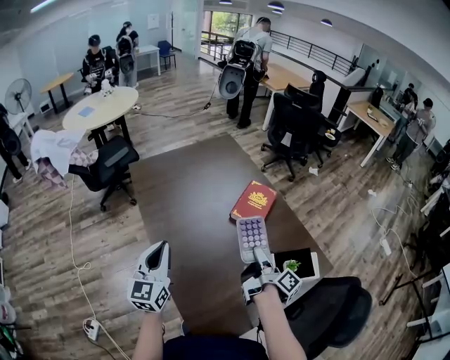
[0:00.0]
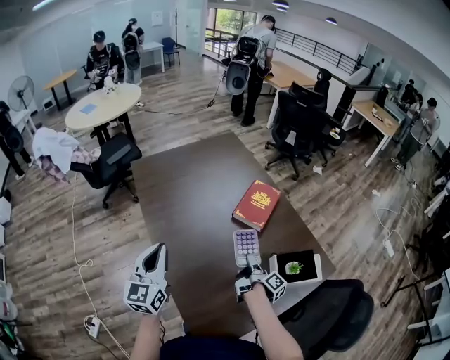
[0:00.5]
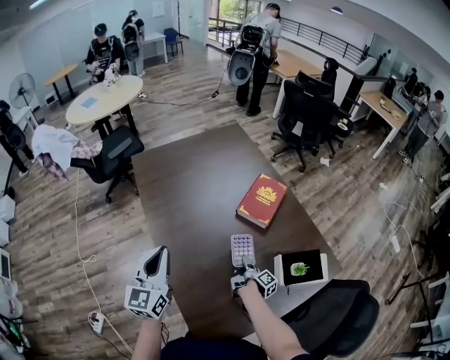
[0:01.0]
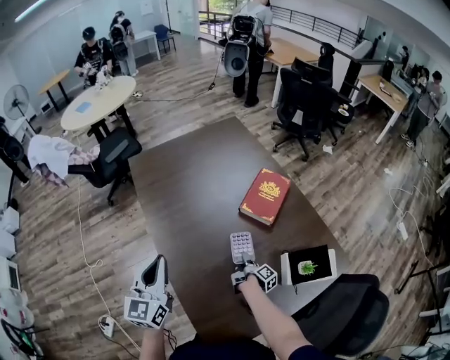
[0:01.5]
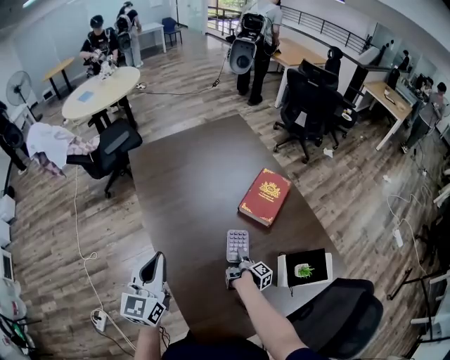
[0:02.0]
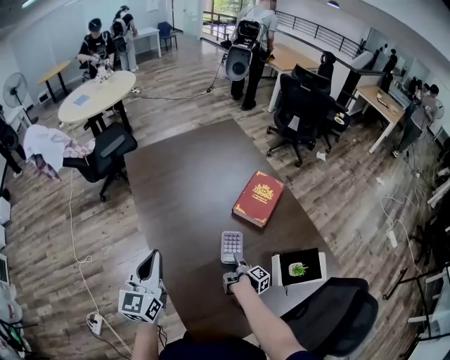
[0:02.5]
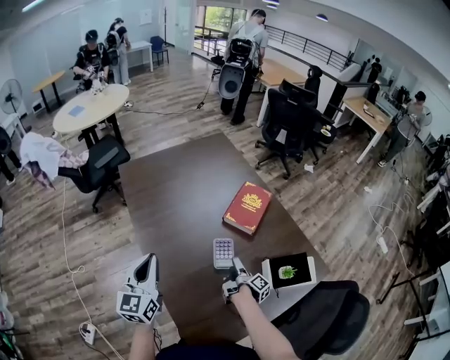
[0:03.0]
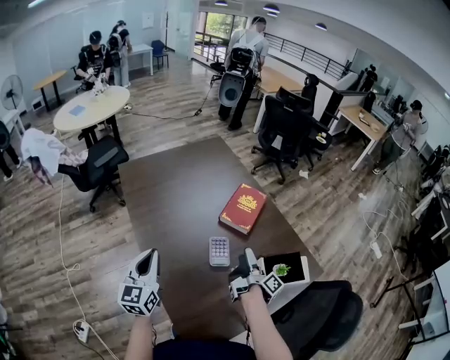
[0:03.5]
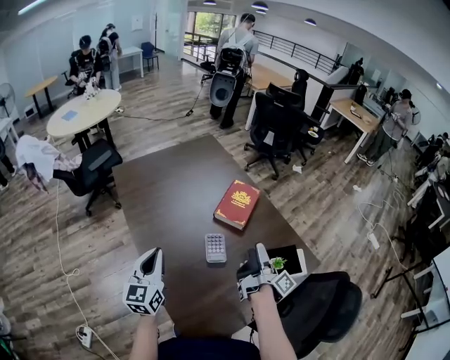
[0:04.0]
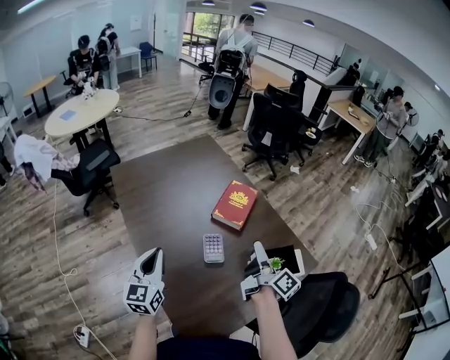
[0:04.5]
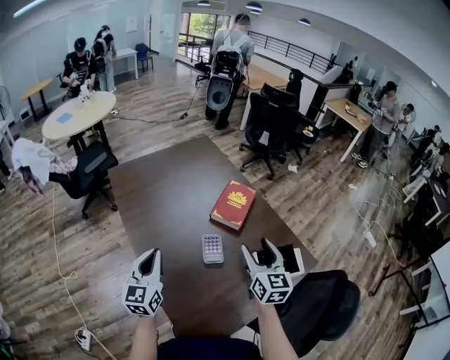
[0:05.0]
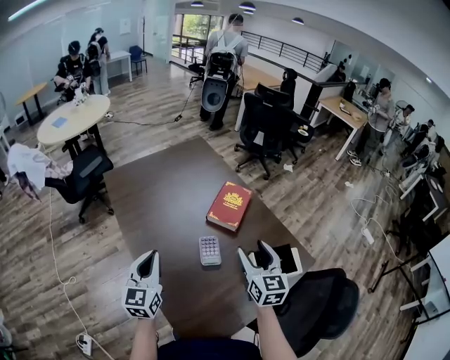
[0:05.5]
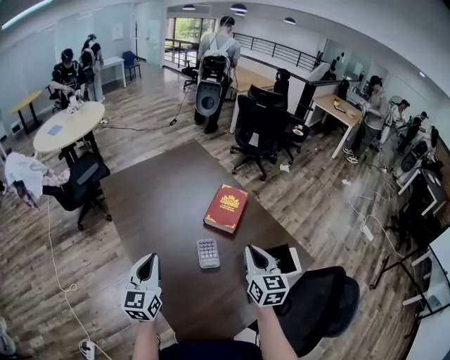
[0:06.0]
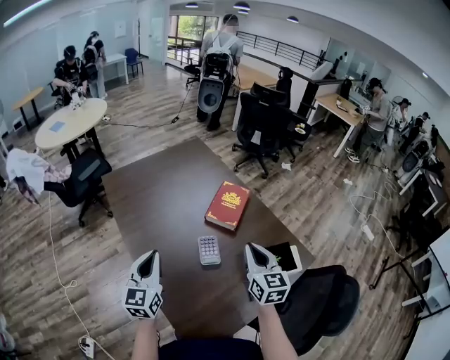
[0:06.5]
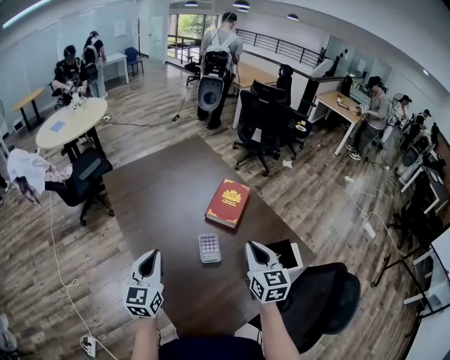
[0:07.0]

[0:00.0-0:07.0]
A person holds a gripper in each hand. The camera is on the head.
0:00.0 to 0:02.0: The right gripper heads downward, covering approximately 30 cm, rotates some 30 degrees, and opens its fingers.
0:02.0 to 0:03.5: The right gripper travels upward by roughly 25 cm, and rotates approximately 30 degrees.
0:03.5 to 0:05.0: The right gripper moves upward, approximately 15 cm, and twists about 90 degrees counterclockwise, seen from behind.
0:05.0 to 0:07.0: The right gripper closes its fingers.

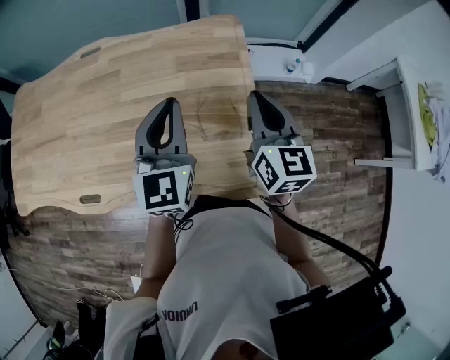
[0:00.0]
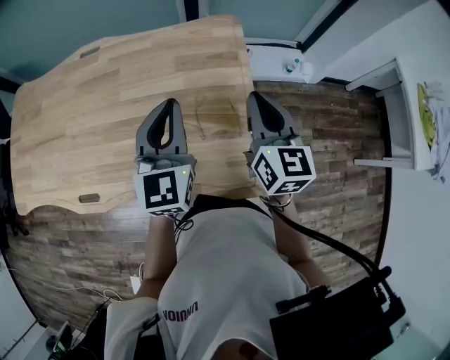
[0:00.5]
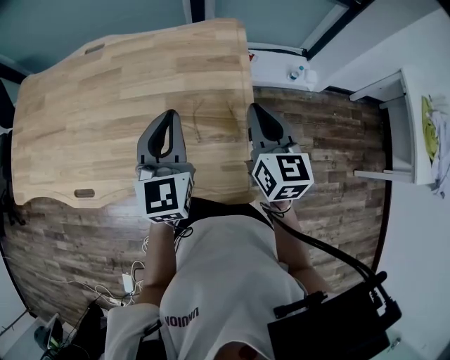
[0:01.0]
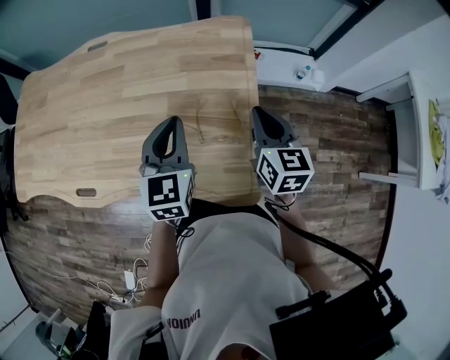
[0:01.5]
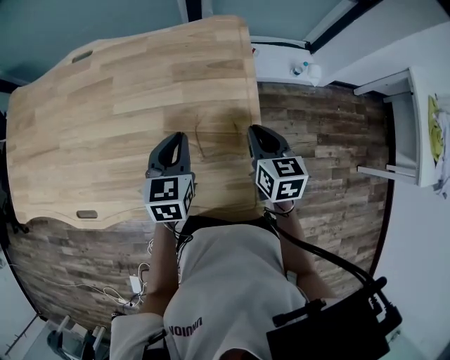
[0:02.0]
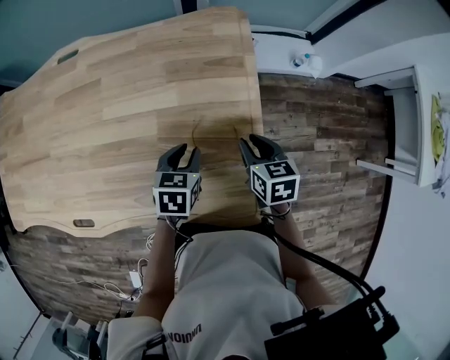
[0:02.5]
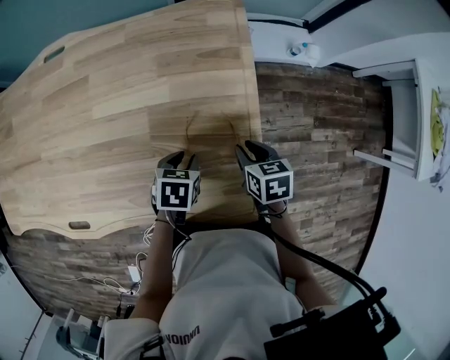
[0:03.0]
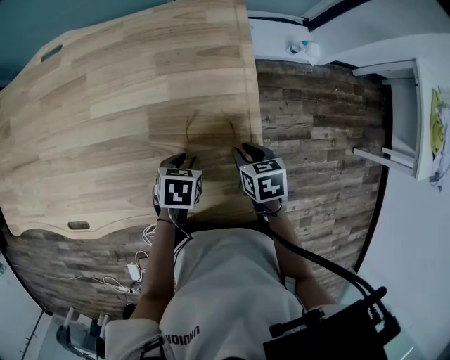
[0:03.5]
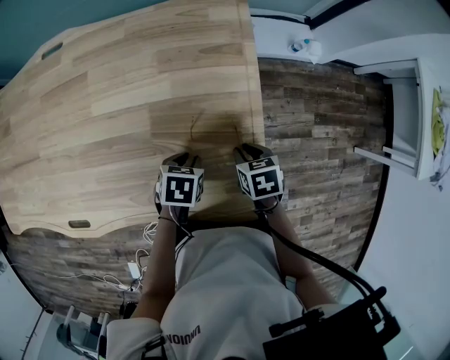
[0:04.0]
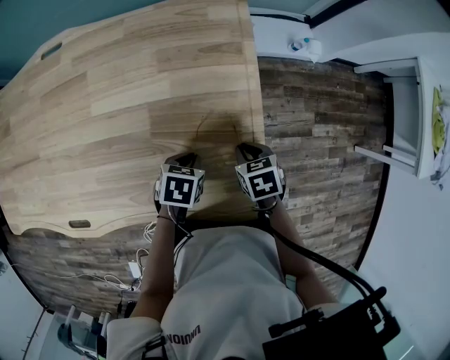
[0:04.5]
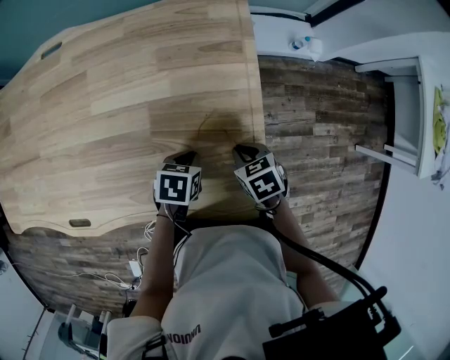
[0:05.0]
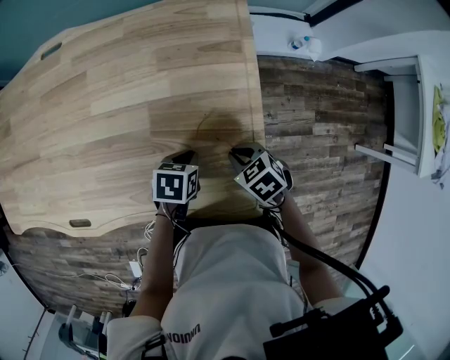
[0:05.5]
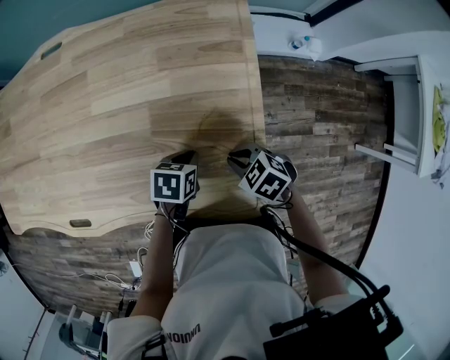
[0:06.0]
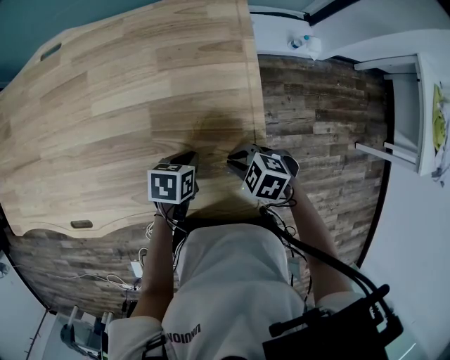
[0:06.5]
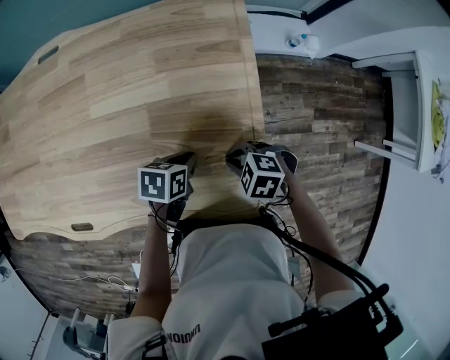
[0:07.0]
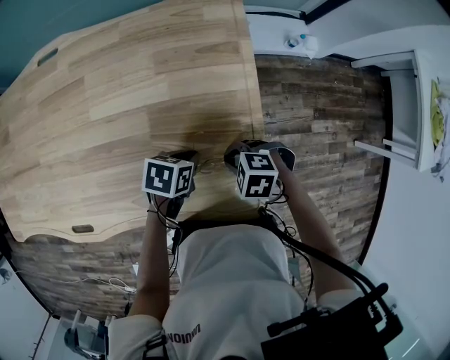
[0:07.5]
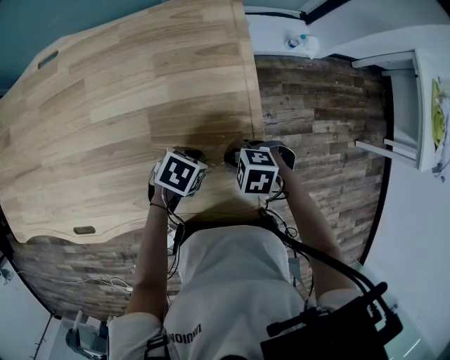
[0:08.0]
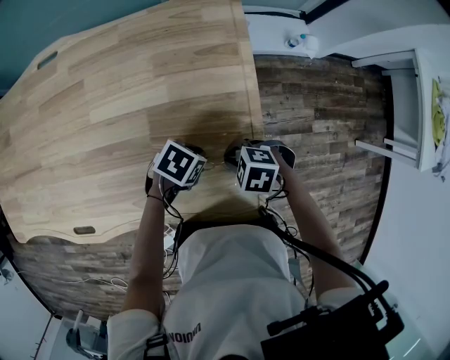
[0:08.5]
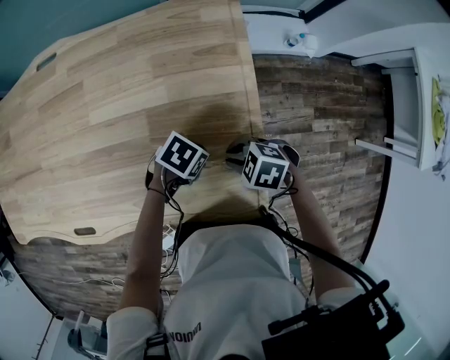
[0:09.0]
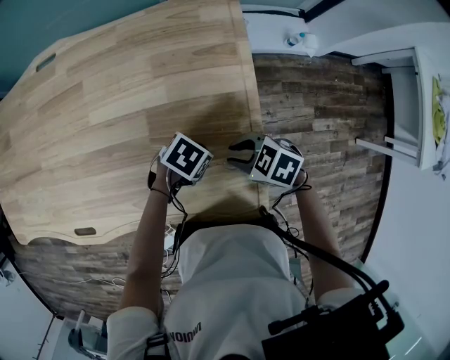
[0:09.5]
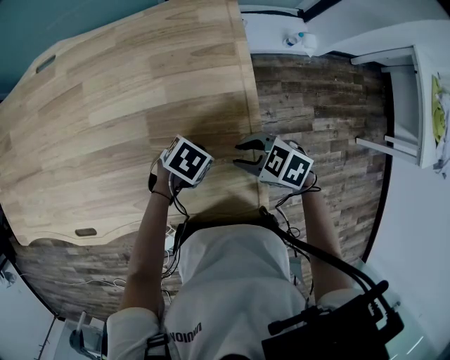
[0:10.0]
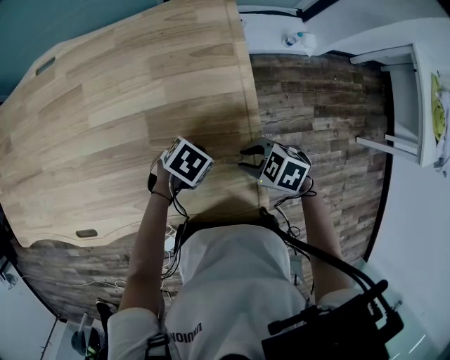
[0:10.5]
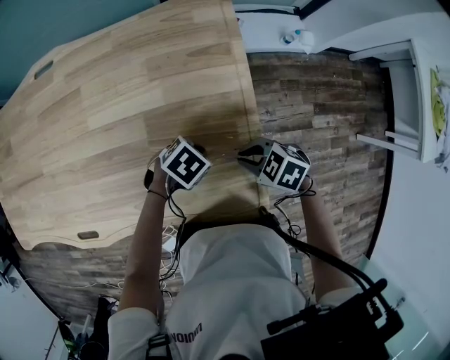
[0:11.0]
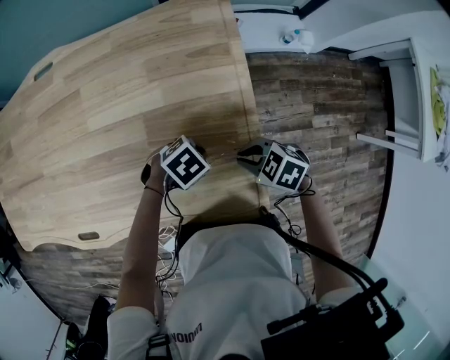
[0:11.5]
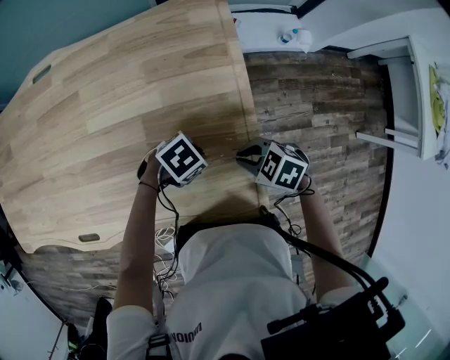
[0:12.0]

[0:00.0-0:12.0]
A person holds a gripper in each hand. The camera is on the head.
0:00.0 to 0:02.0: The grippers both shift downward by roughly 15 cm. The right gripper swivels about 30 degrees. The left gripper swivels some 30 degrees.
0:02.0 to 0:04.0: The two grippers go roughly 15 cm downward and backward. The left gripper points its fingers roughly 40 degrees further downward, and opens its fingers, while the right gripper tilts its fingers some 30 degrees downward.
0:04.0 to 0:06.0: The right gripper changes place by about 5 cm, and rotates around the line of its fingers by about 40 degrees, counterclockwise from behind.
0:06.0 to 0:08.0: The left gripper turns by about 20 degrees. Meanwhile the right gripper turns by some 20 degrees.
0:08.0 to 0:10.0: The right gripper changes place by roughly 5 cm, turns by roughly 20 degrees, and opens.
0:10.0 to 0:12.0: The right gripper closes up.

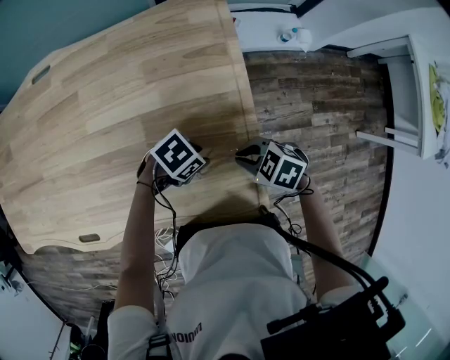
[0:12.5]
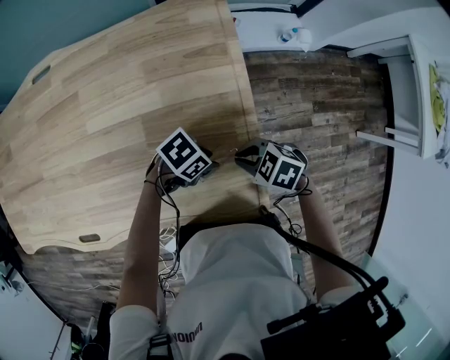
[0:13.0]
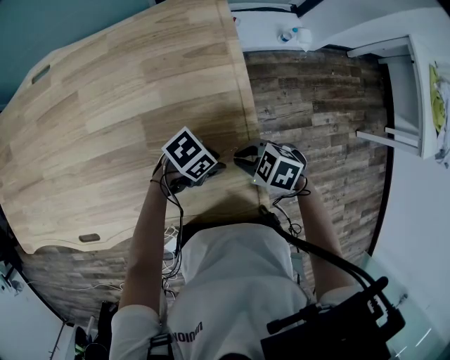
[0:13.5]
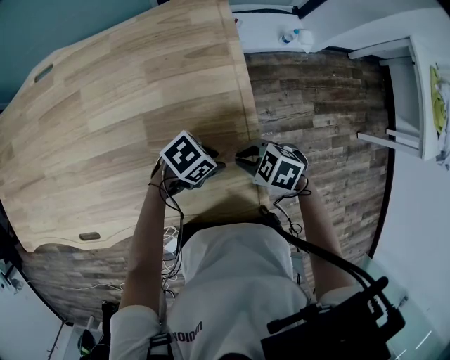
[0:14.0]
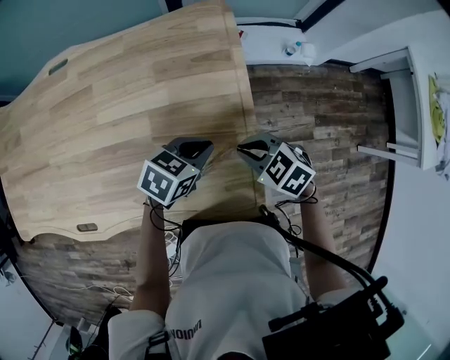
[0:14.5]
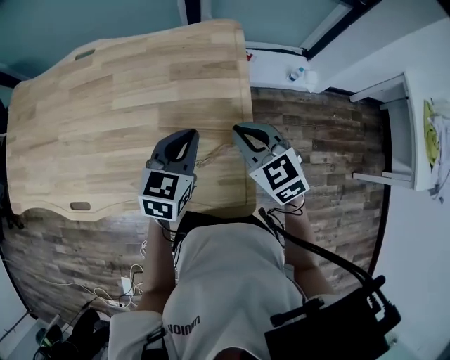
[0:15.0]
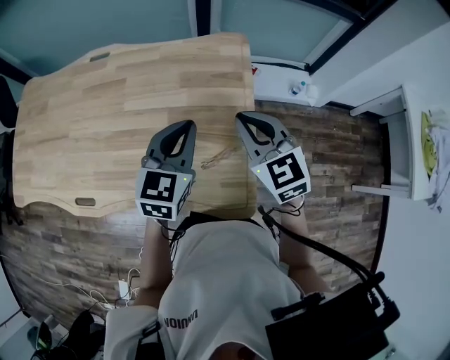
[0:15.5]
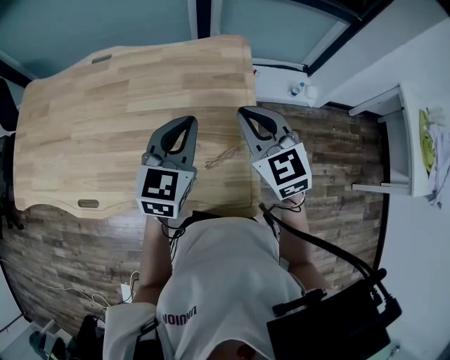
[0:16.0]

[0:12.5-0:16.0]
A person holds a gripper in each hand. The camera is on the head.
0:12.5 to 0:14.5: The right gripper moves about 5 cm, while the left gripper travels upward by about 10 cm, turns by about 40 degrees, and closes.
0:14.5 to 0:16.0: The grippers both shift upward by some 20 cm. The right gripper tilts its fingers approximately 30 degrees upward. The left gripper swivels approximately 50 degrees.

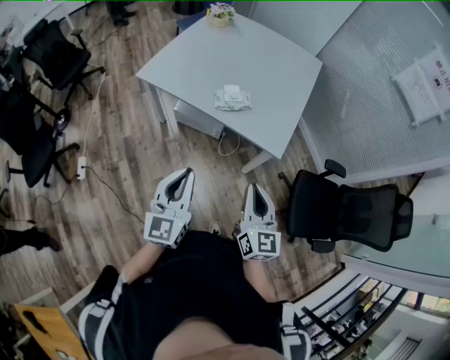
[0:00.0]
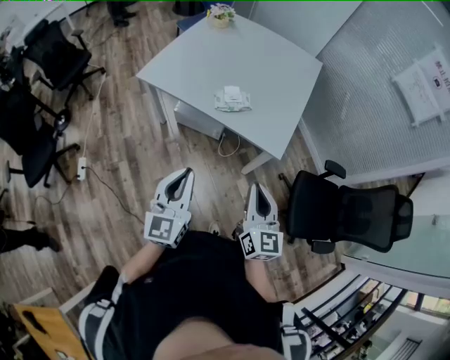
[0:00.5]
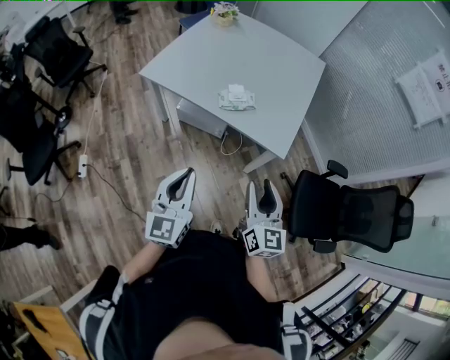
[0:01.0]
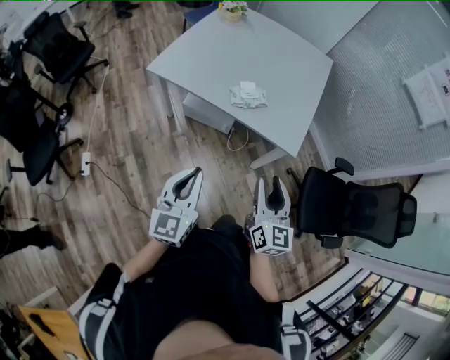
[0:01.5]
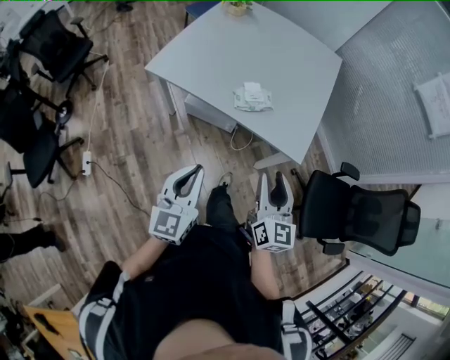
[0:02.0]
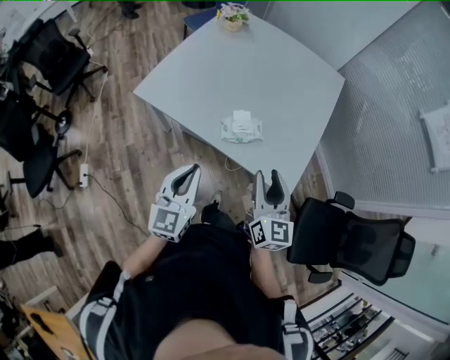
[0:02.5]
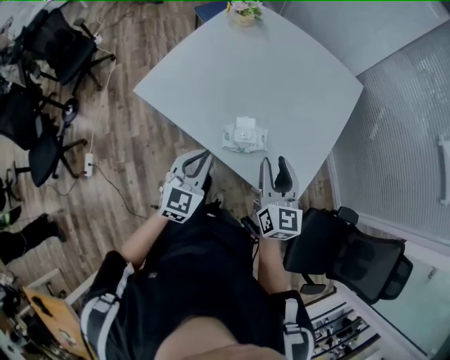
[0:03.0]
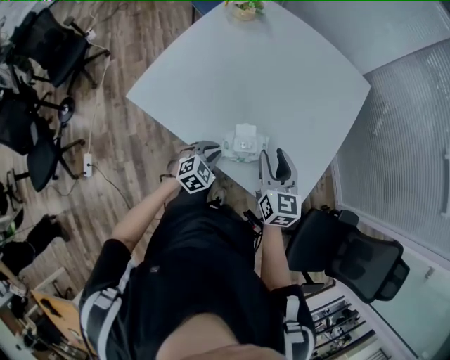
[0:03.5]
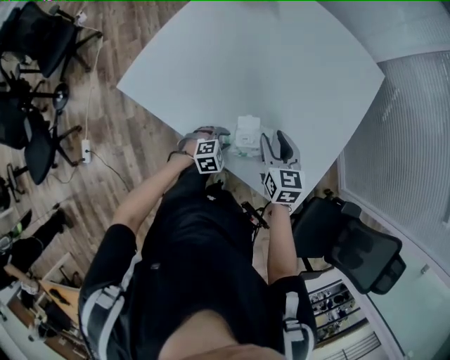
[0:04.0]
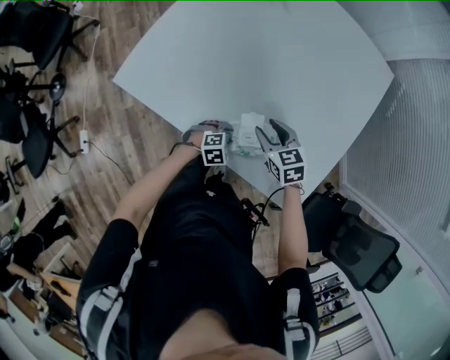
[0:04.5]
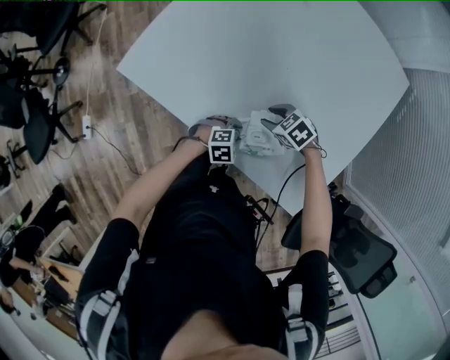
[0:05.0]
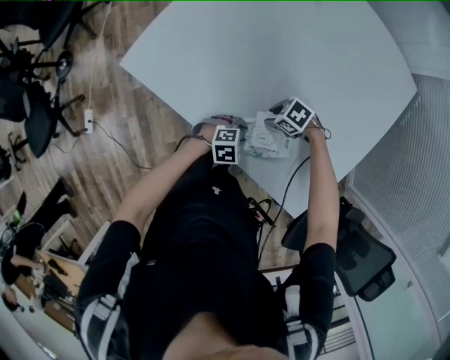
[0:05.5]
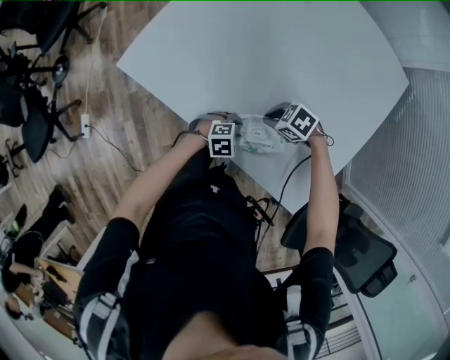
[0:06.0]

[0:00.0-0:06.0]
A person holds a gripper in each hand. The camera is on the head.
0:00.0 to 0:02.0: The two grippers go roughly 10 cm forward and to the left. The right gripper opens its fingers.
0:02.0 to 0:04.0: The two grippers travel together, forward, approximately 50 cm. The right gripper swivels some 30 degrees; the left gripper travels downward by about 35 cm, points its fingers roughly 50 degrees further downward, and opens its fingers.
0:04.0 to 0:06.0: The right gripper travels downward by some 15 cm, changes its angle by some 70 degrees, and closes its fingers.
